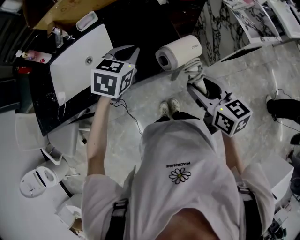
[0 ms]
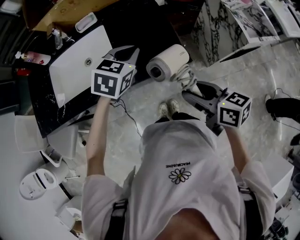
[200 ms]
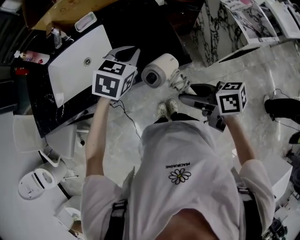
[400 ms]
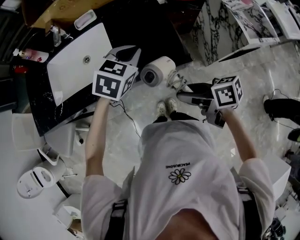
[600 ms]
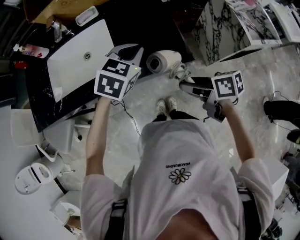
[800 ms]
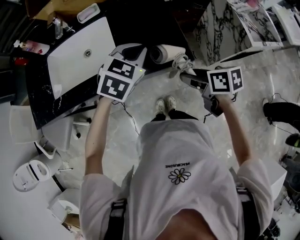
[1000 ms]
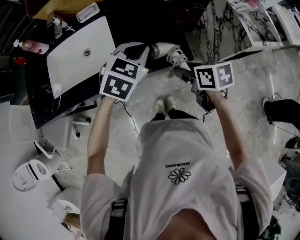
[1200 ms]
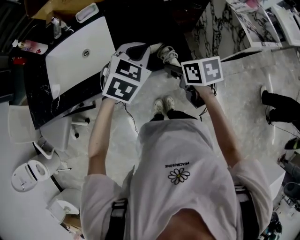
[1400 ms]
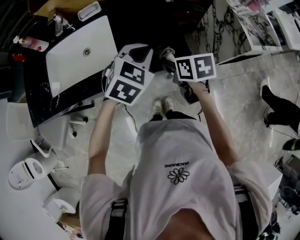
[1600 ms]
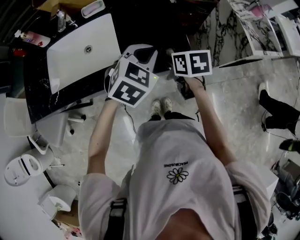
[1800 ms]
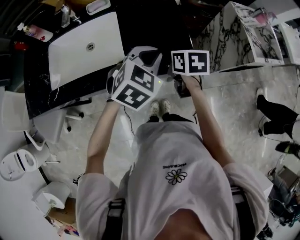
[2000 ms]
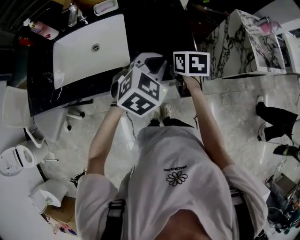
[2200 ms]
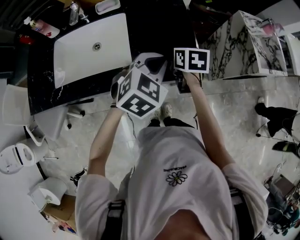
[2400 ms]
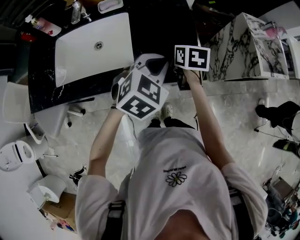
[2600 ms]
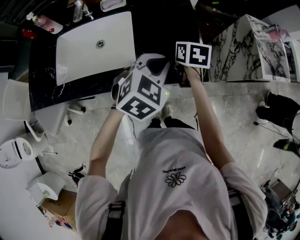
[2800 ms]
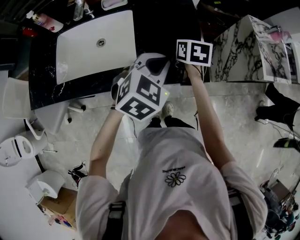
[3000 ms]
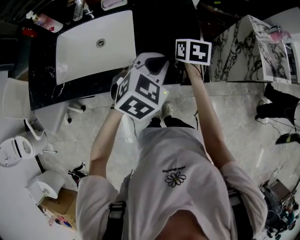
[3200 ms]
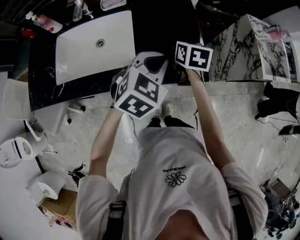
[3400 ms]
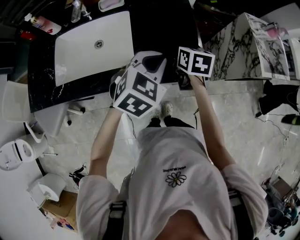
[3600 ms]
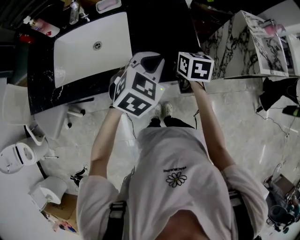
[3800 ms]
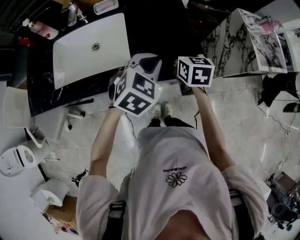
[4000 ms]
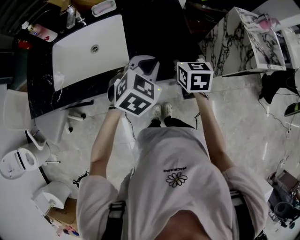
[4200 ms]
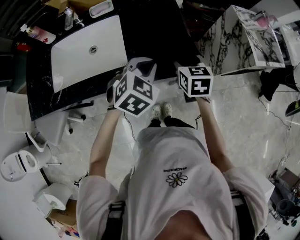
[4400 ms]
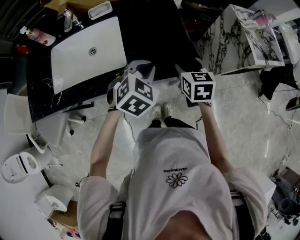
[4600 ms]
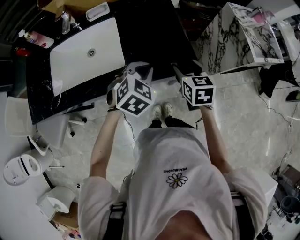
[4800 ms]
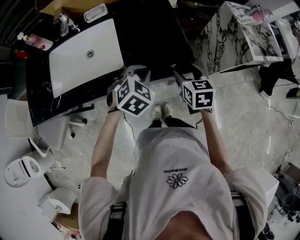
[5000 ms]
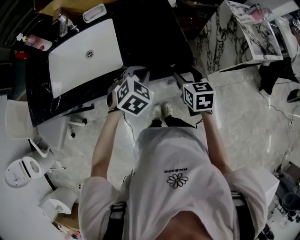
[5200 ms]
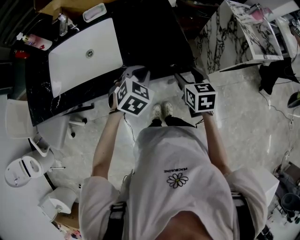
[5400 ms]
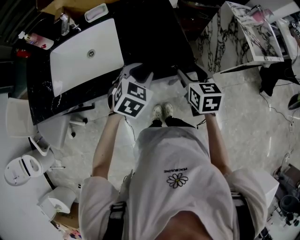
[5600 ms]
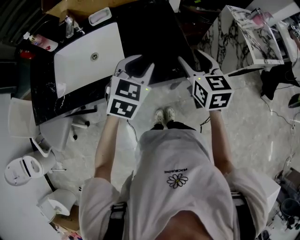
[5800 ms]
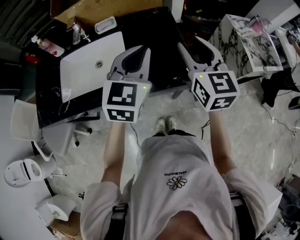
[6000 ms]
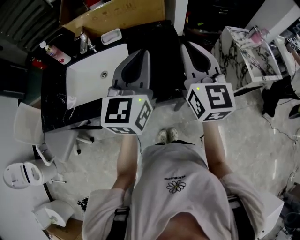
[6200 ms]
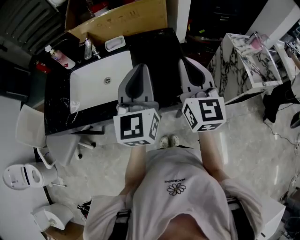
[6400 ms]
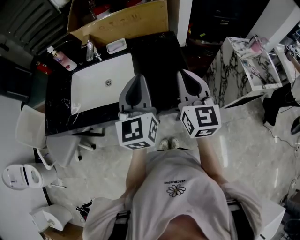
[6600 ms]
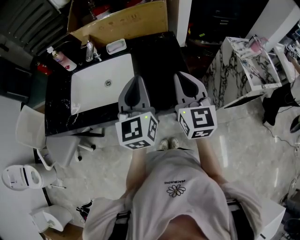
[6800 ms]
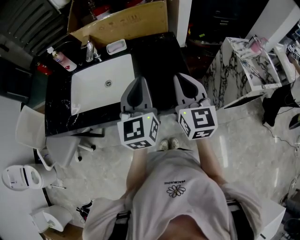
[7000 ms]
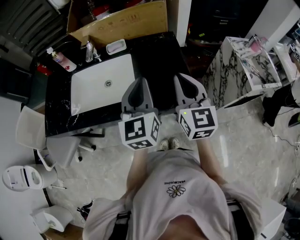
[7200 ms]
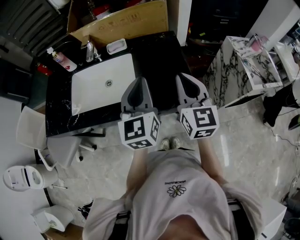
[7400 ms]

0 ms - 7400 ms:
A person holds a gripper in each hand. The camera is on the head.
0 ms - 1400 ms: The right gripper travels forward and downward by roughly 10 cm, and swivels approximately 30 degrees.
1400 ms - 3000 ms: The right gripper heads forward, covering some 15 cm.
3000 ms - 4400 ms: The right gripper moves backward and to the right, some 10 cm.
4400 ms - 6000 ms: Both grippers travel together upward, about 15 cm. The left gripper points its fingers some 30 degrees further upward, and opens, then closes again; the right gripper turns by about 30 degrees.
6000 ms - 7400 ms: The right gripper closes up. The left gripper changes place by some 5 cm, and swivels some 30 degrees.

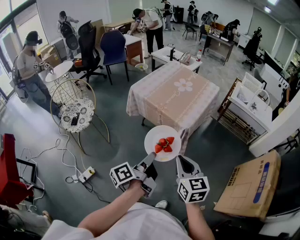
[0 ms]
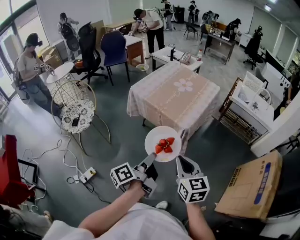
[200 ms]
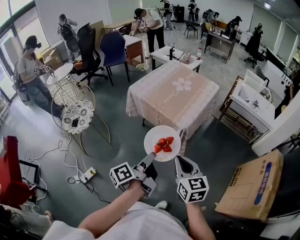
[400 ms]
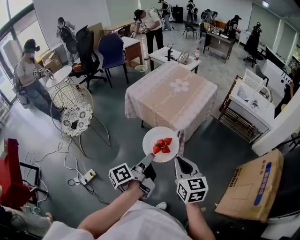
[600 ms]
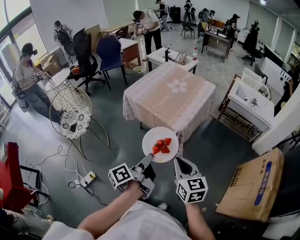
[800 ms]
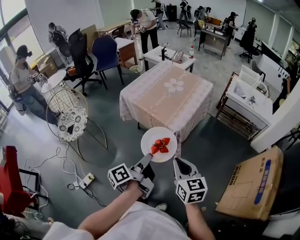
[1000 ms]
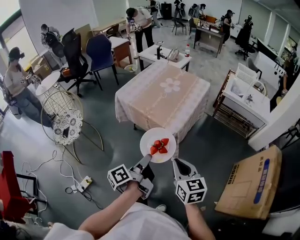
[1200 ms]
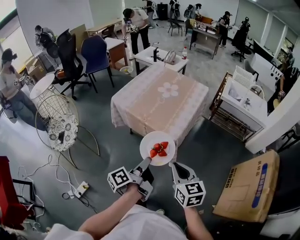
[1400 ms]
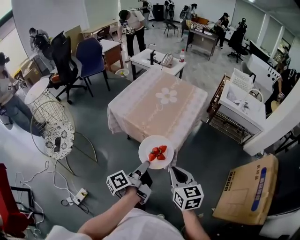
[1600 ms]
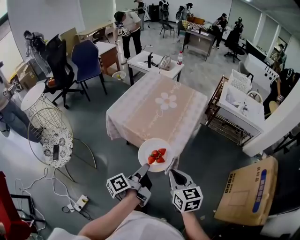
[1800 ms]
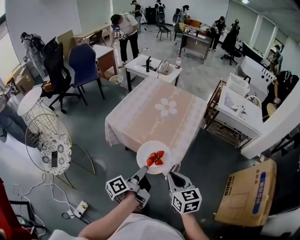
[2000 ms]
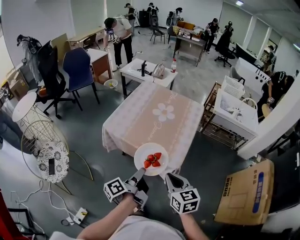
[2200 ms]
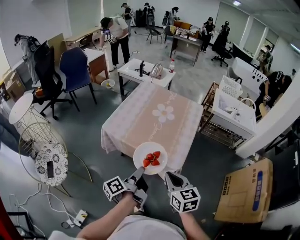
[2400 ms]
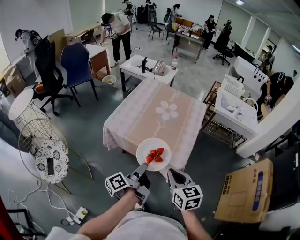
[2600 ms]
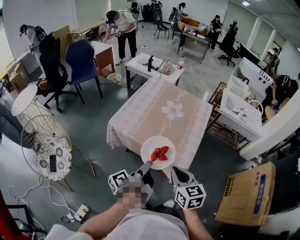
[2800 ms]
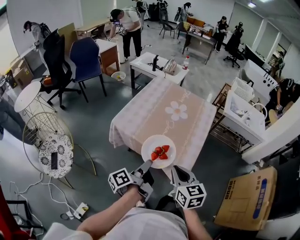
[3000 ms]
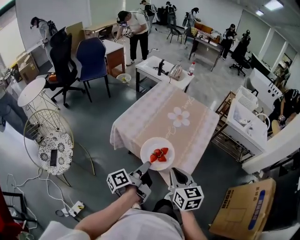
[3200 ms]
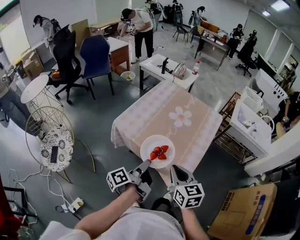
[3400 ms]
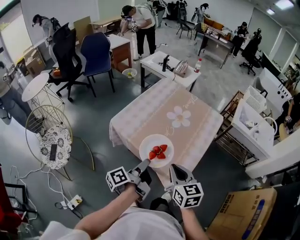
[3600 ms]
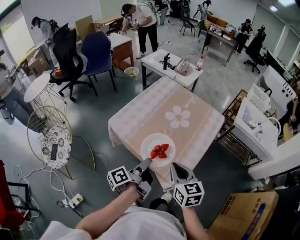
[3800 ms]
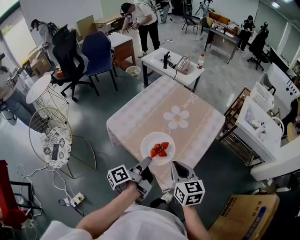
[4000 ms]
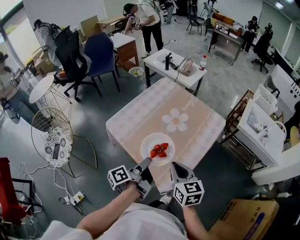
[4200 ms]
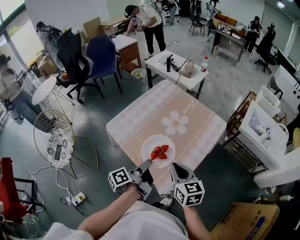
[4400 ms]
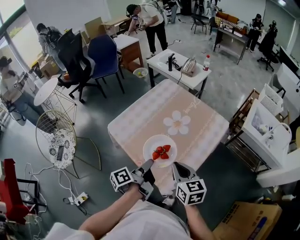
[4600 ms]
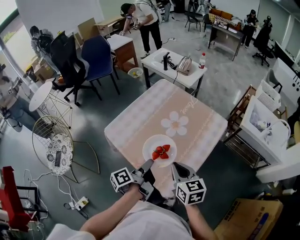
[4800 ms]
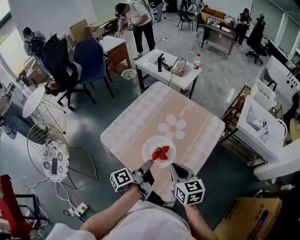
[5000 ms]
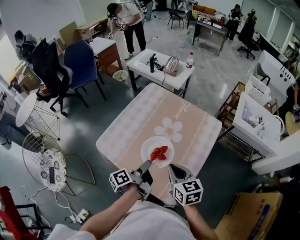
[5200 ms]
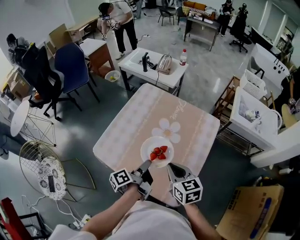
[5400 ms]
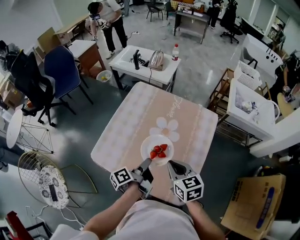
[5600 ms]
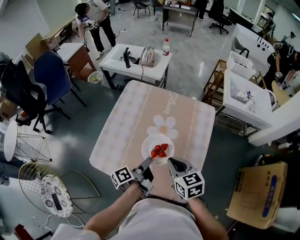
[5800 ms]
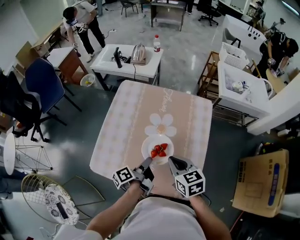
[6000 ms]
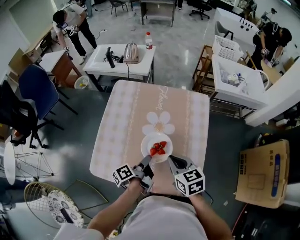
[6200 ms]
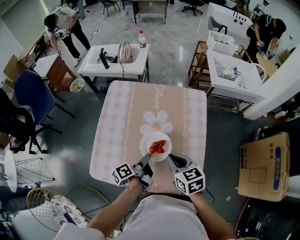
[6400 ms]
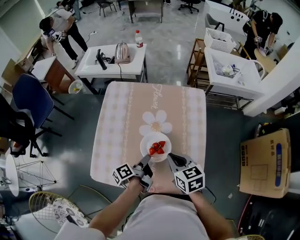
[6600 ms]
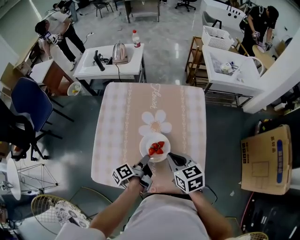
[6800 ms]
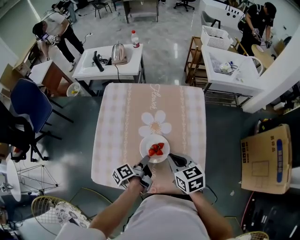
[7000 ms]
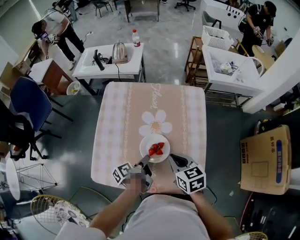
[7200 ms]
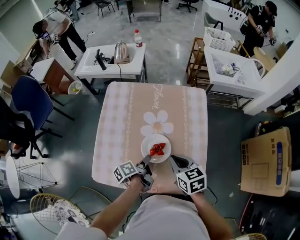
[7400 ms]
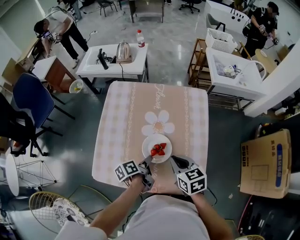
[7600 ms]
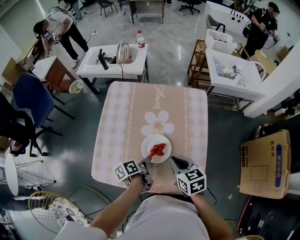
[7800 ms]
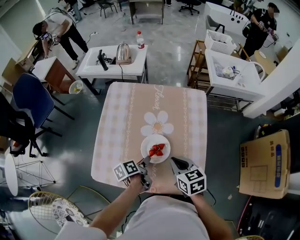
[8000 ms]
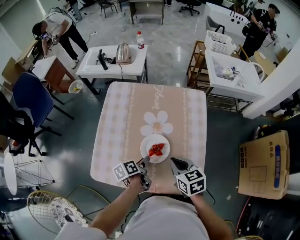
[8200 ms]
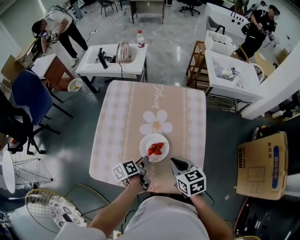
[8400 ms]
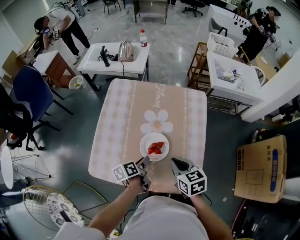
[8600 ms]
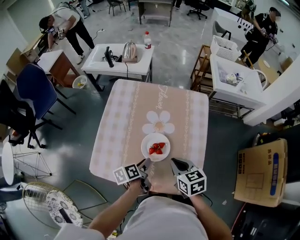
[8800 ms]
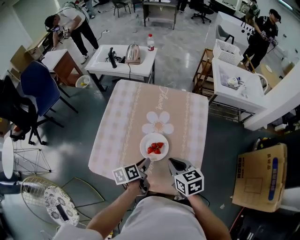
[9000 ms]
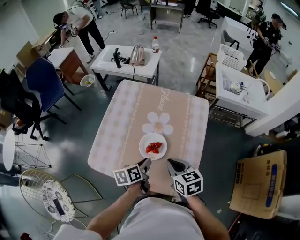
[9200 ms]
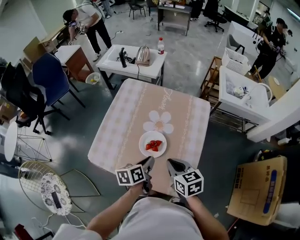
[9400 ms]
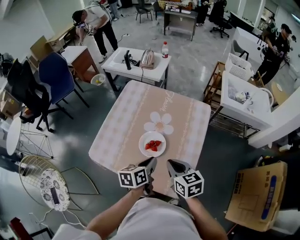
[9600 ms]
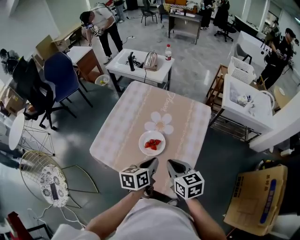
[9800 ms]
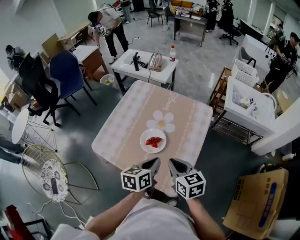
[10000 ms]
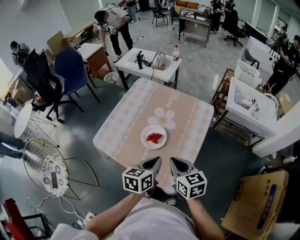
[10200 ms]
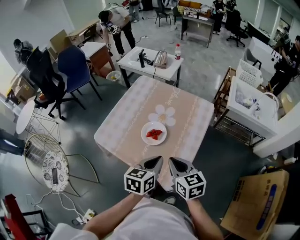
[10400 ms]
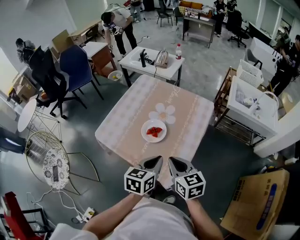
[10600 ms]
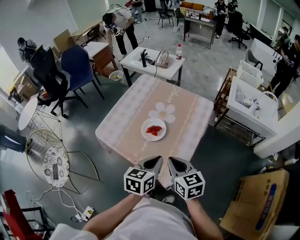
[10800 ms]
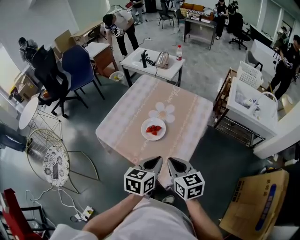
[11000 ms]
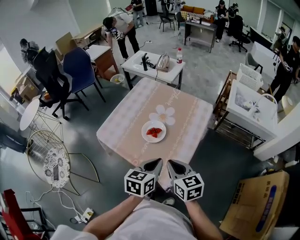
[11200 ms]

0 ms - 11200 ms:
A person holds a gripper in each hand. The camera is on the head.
0 ms - 1600 ms: The right gripper ends up approximately 15 cm from where it was.
1600 ms - 3200 ms: The right gripper moves some 20 cm.
3200 ms - 4800 ms: The right gripper moves approximately 20 cm.
4800 ms - 6400 ms: The right gripper moves roughly 10 cm, and turns by some 30 degrees.
8000 ms - 9600 ms: The right gripper moves approximately 5 cm.
9600 ms - 11200 ms: The right gripper changes place by about 10 cm.

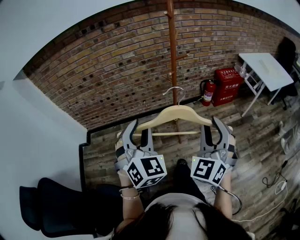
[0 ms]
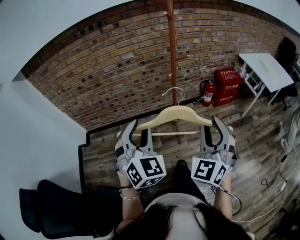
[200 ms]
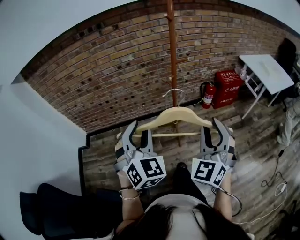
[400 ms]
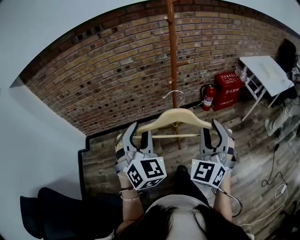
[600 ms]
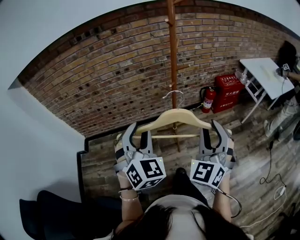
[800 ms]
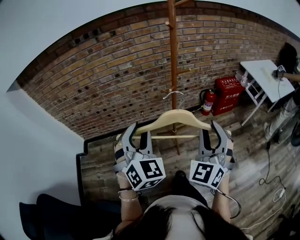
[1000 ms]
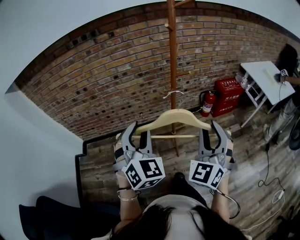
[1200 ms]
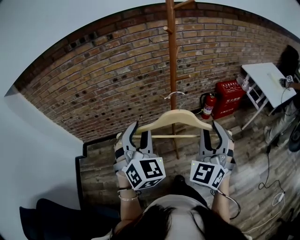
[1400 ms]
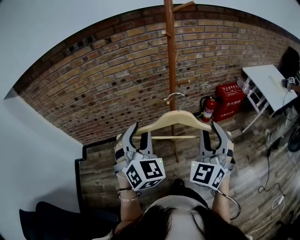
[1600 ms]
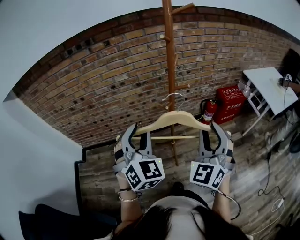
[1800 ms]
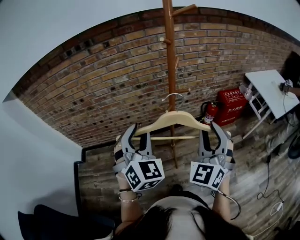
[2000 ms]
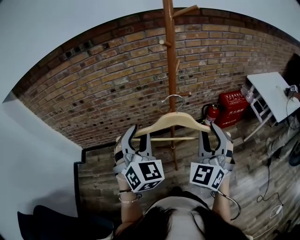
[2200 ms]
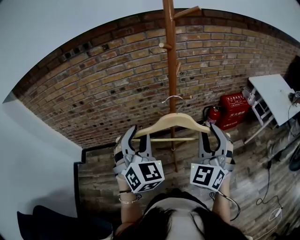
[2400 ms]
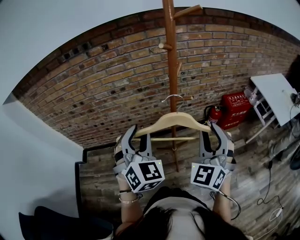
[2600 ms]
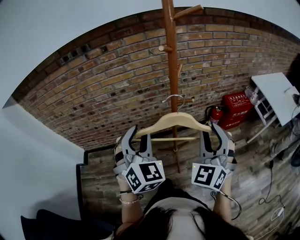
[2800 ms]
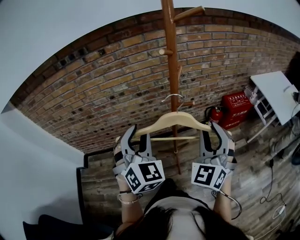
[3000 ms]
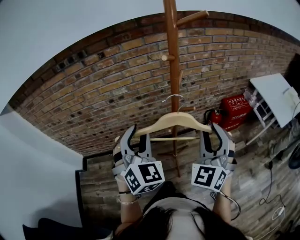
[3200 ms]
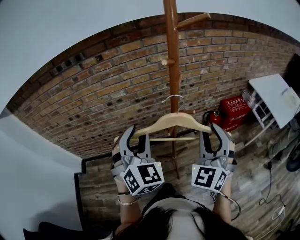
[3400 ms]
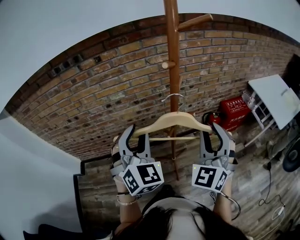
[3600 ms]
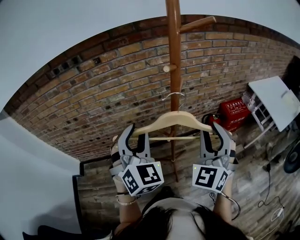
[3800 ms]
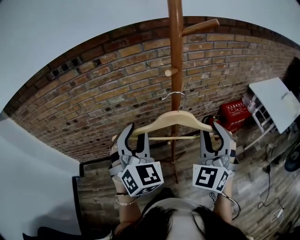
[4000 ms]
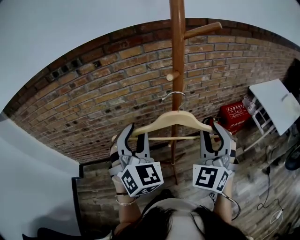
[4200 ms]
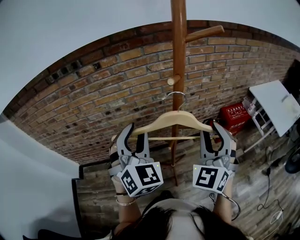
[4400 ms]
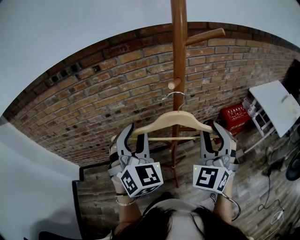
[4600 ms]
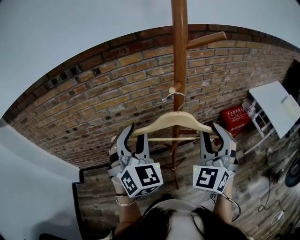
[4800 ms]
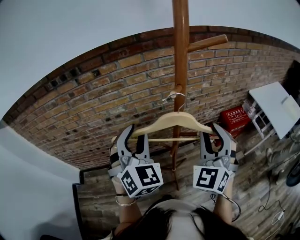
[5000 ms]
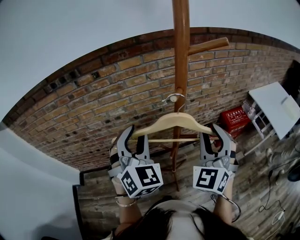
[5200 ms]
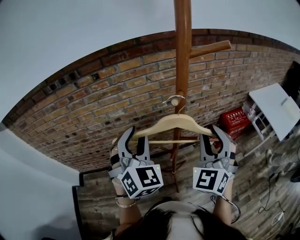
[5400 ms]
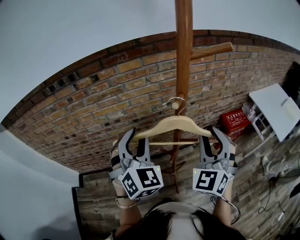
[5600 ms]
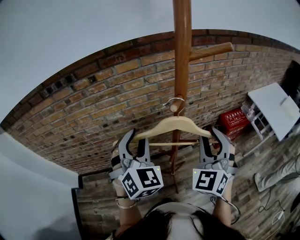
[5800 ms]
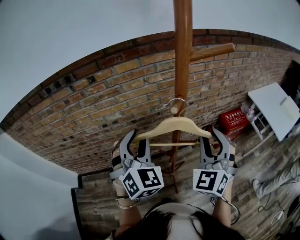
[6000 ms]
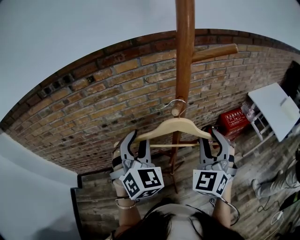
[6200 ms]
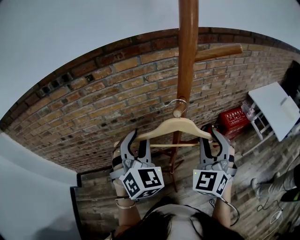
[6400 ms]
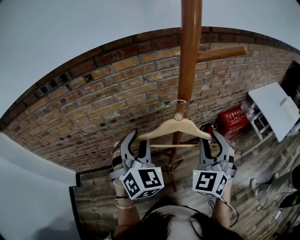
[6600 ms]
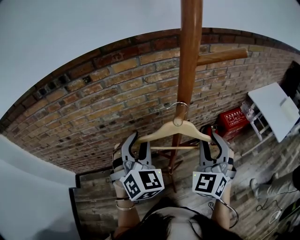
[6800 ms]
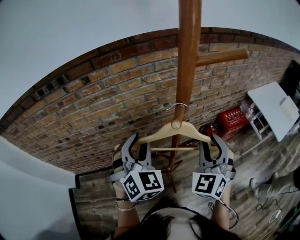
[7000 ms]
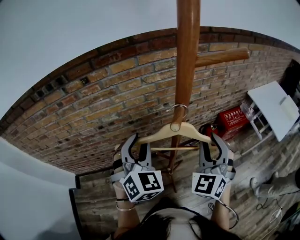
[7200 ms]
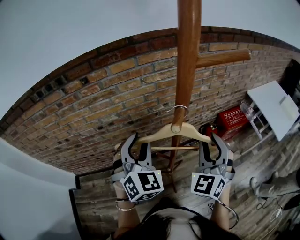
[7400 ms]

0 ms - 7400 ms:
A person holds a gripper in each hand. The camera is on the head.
0 ms - 1400 ms: The grippers both shift forward by about 15 cm.
1400 ms - 3000 ms: Both grippers travel together forward, some 15 cm.
3000 ms - 4400 ms: The two grippers go about 10 cm forward.
4400 ms - 6000 ms: Both grippers travel together forward, about 5 cm.
6000 ms - 7400 ms: The grippers stay close to where they were, moving slightly.
